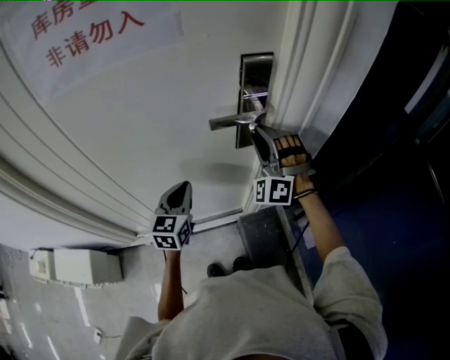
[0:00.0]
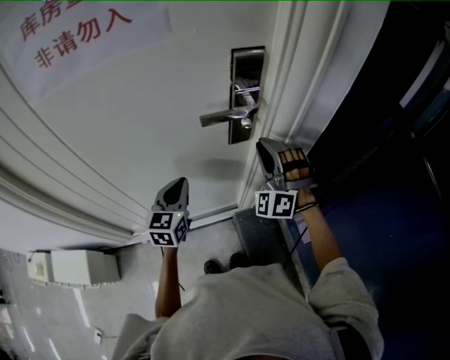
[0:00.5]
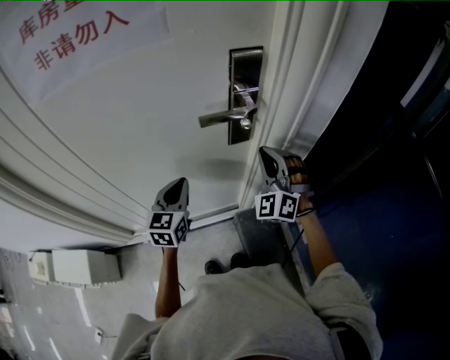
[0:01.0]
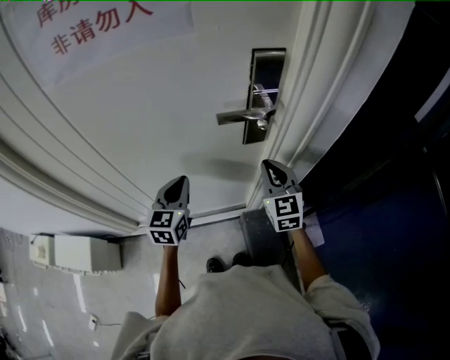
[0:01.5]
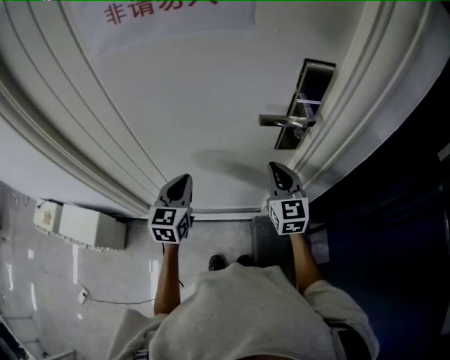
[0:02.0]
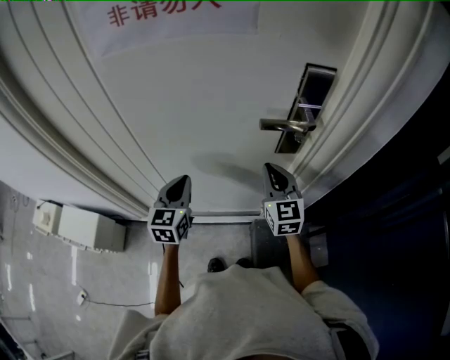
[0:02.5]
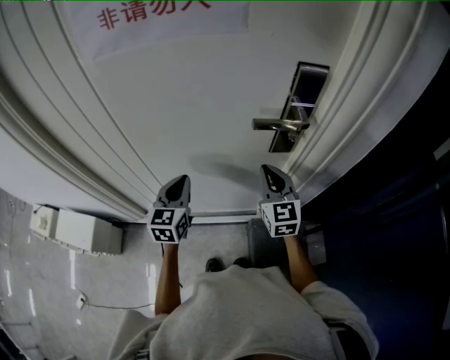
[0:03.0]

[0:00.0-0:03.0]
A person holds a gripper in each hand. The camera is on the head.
0:00.0 to 0:01.5: The right gripper heads downward, covering approximately 5 cm, rolls clockwise, seen from behind, by approximately 70 degrees, and closes.
0:01.5 to 0:03.0: The two grippers go about 5 cm to the left.

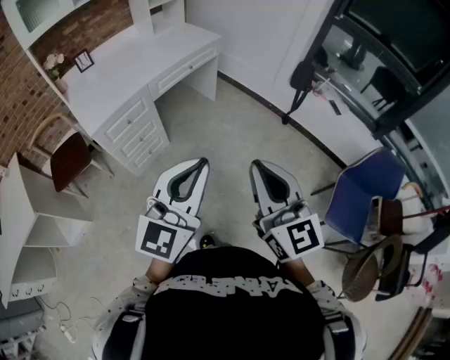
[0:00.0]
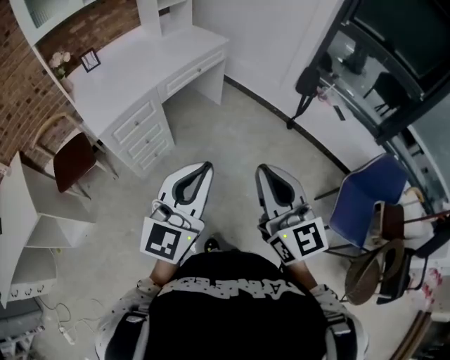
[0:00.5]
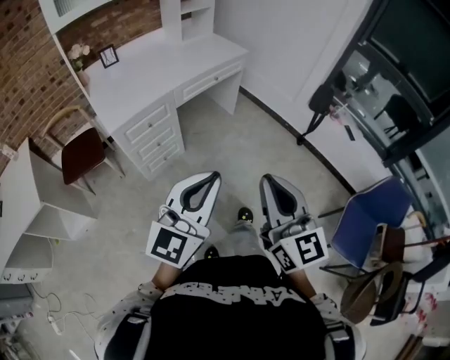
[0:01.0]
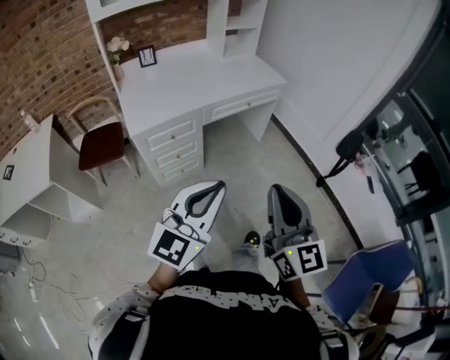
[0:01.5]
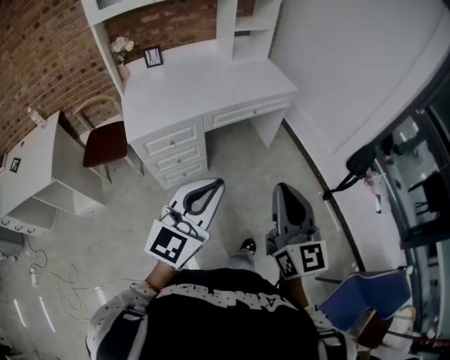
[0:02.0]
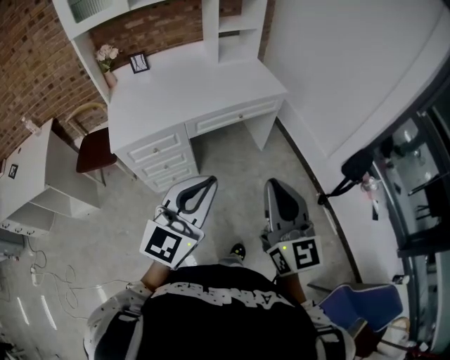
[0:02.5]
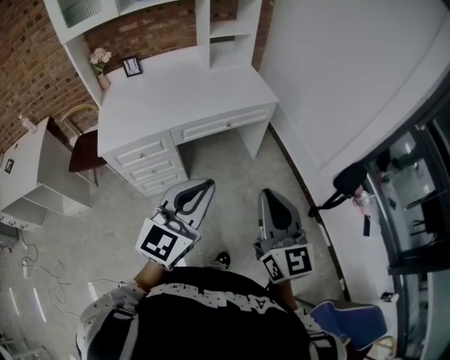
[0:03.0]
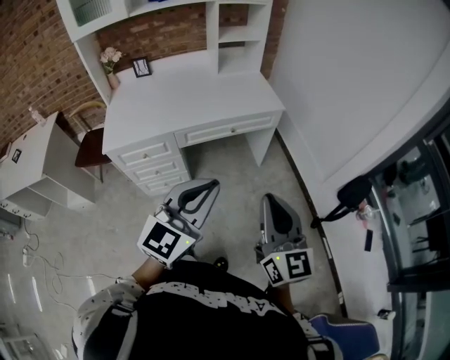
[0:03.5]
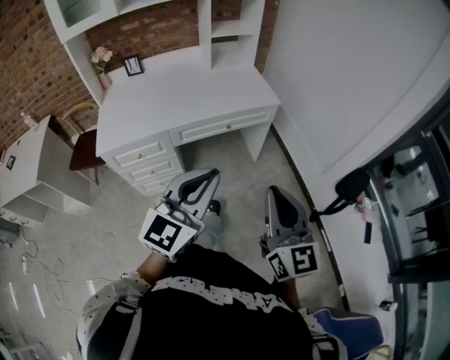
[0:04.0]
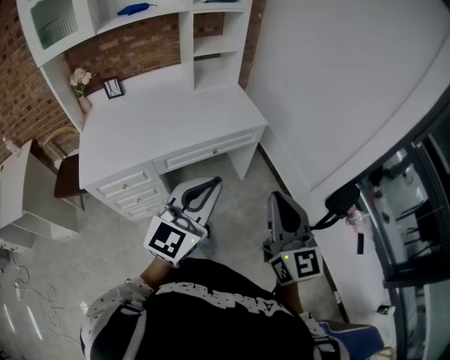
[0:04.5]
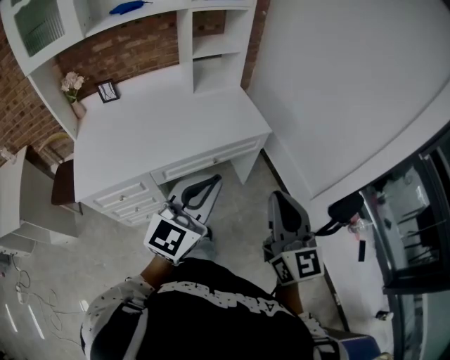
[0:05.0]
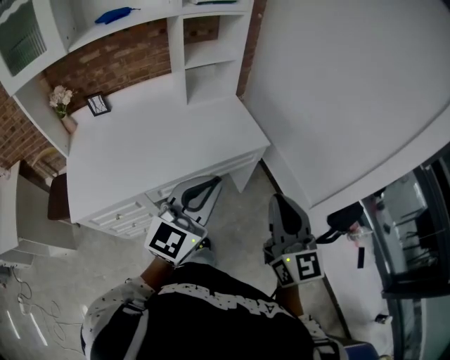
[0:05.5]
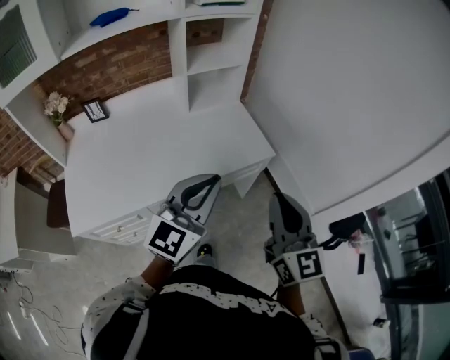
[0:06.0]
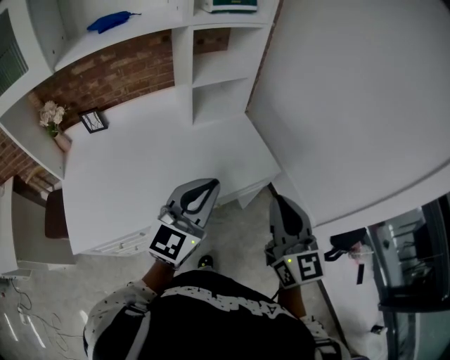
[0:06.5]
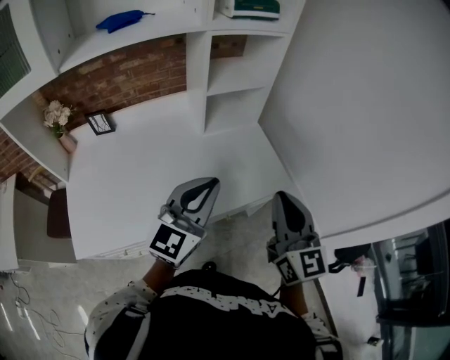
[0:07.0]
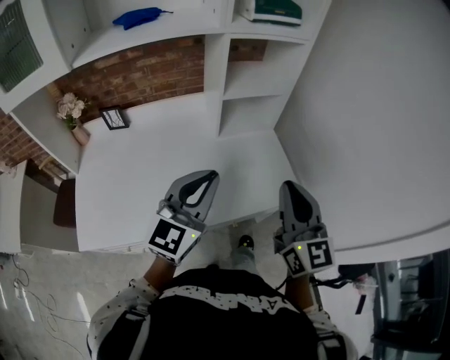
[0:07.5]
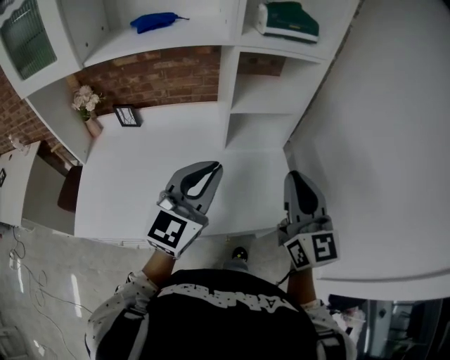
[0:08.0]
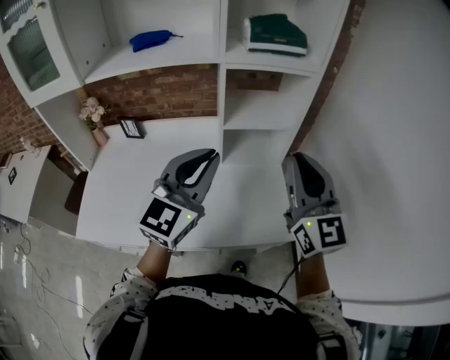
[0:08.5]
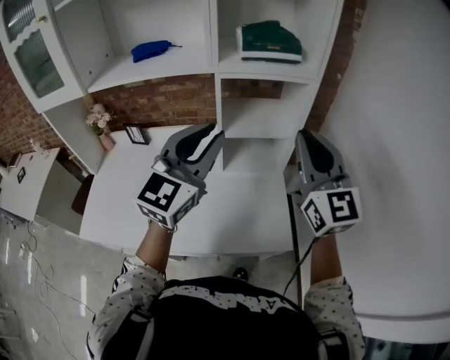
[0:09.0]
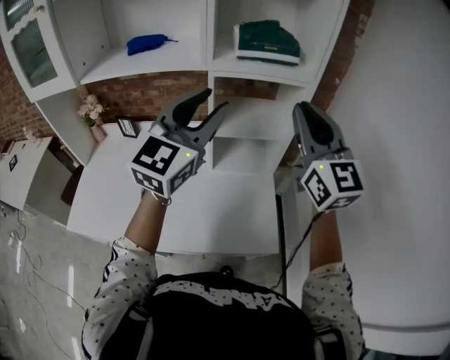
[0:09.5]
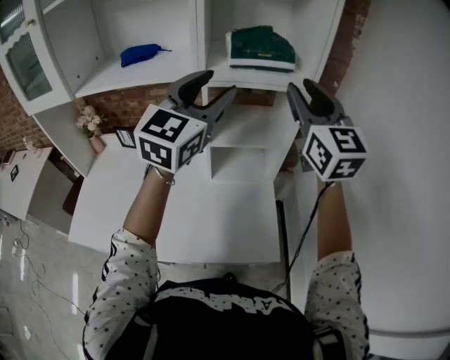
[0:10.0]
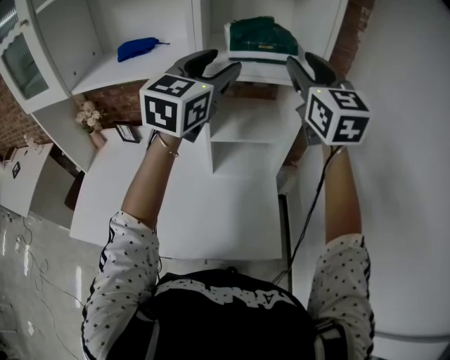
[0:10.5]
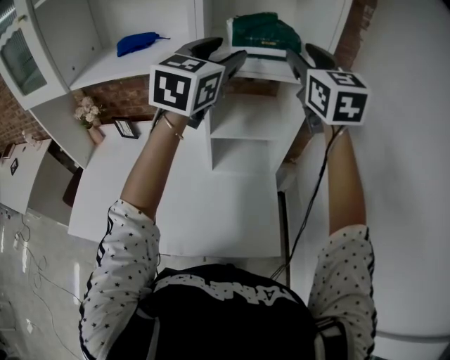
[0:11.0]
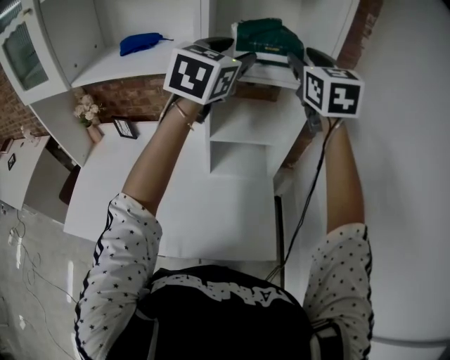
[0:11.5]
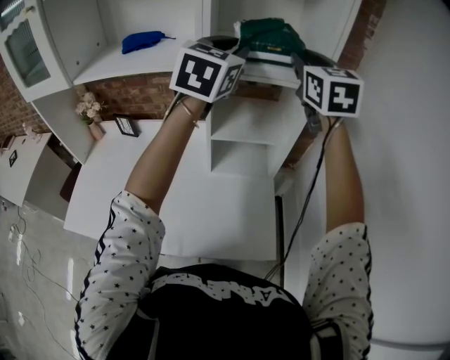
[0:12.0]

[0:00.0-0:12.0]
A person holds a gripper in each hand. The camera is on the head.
0:00.0 to 0:02.0: Both grippers move forward, about 20 cm.
0:02.0 to 0:04.0: The grippers both shift to the right and forward by roughly 20 cm.
0:04.0 to 0:06.0: The two grippers go some 30 cm forward.
0:06.0 to 0:08.0: The right gripper travels forward by some 25 cm, while the left gripper moves forward and to the left, some 20 cm, and turns by roughly 20 degrees.
0:08.0 to 0:10.0: Both grippers move forward and upward, some 30 cm. The left gripper opens its fingers. The right gripper opens.
0:10.0 to 0:12.0: Both grippers travel together forward, about 10 cm. The left gripper closes up.

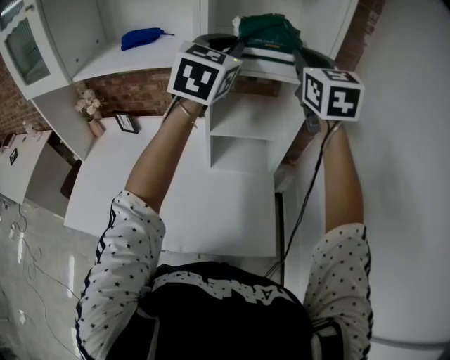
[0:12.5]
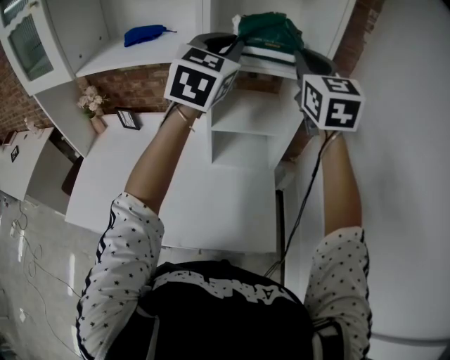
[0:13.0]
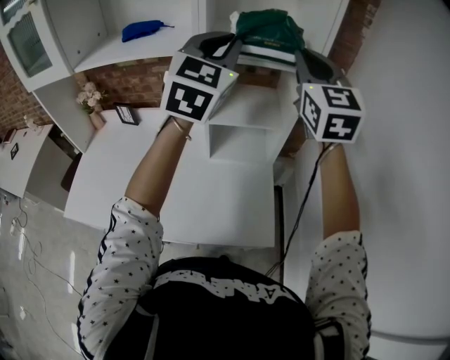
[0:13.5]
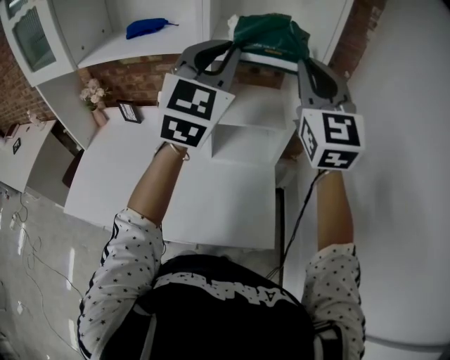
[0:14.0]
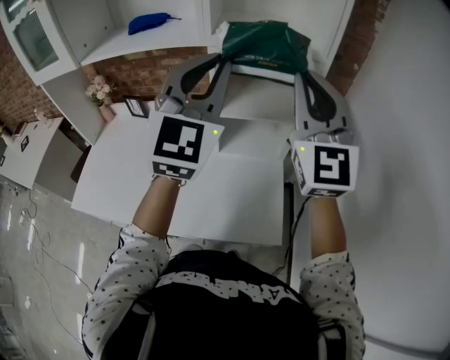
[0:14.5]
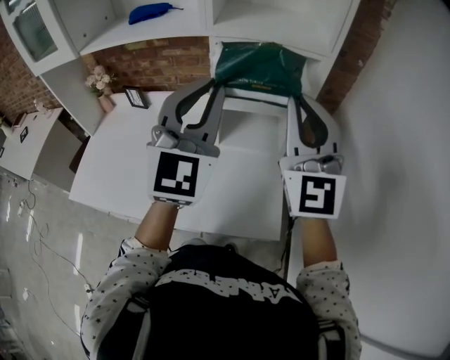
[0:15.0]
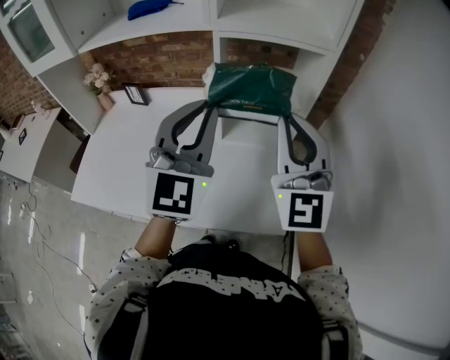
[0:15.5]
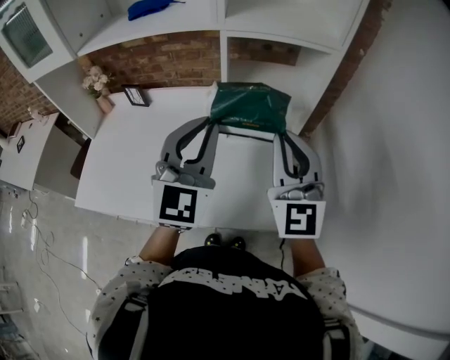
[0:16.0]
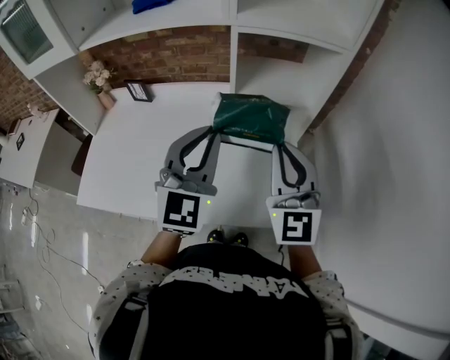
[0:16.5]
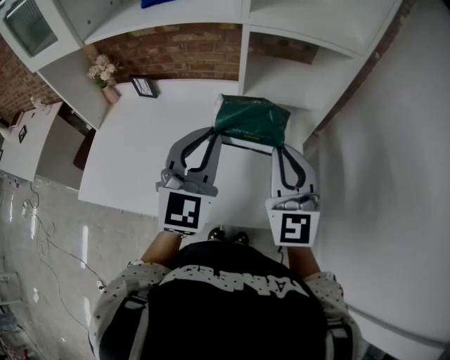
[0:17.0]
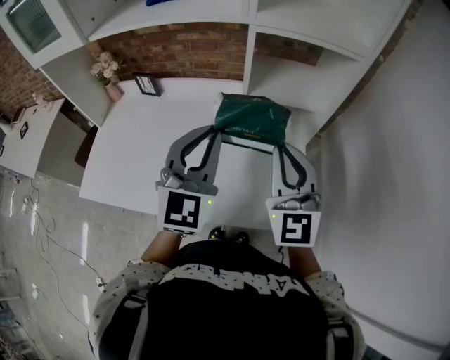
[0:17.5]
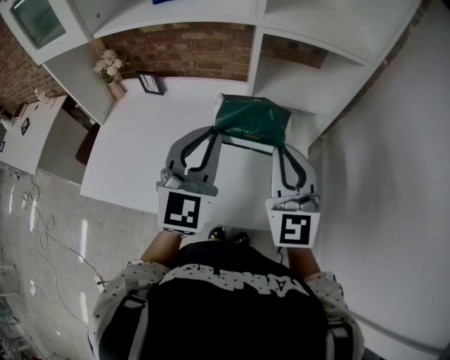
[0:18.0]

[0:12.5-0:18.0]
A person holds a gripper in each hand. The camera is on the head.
0:12.5 to 0:14.5: The grippers both shift backward by roughly 15 cm. The right gripper swivels approximately 20 degrees.
0:14.5 to 0:16.0: The right gripper heads downward and backward, covering roughly 15 cm; the left gripper travels downward by some 15 cm.
0:16.0 to 0:18.0: Both grippers travel together to the left, some 5 cm.

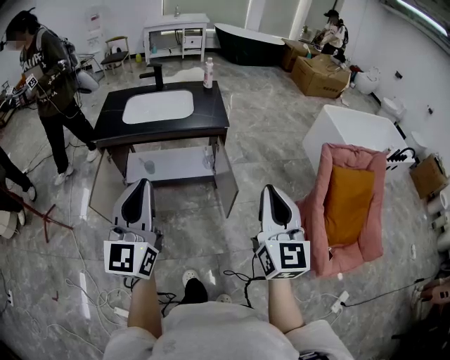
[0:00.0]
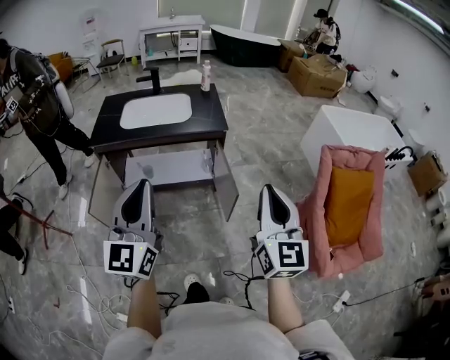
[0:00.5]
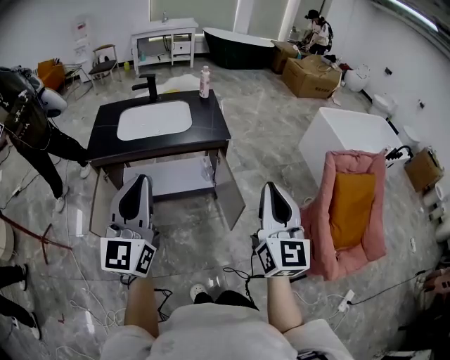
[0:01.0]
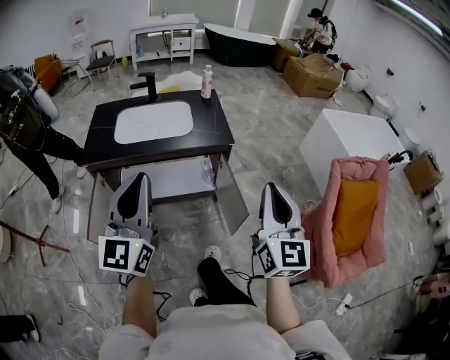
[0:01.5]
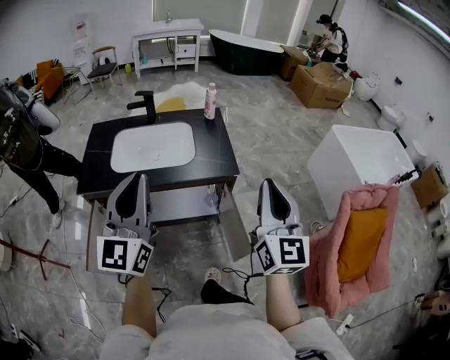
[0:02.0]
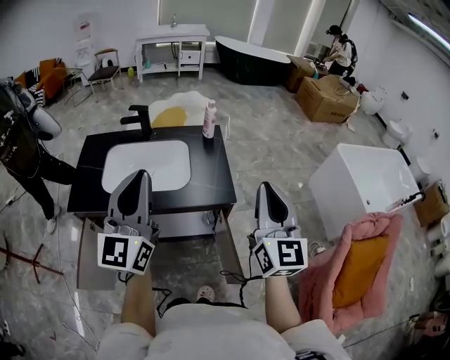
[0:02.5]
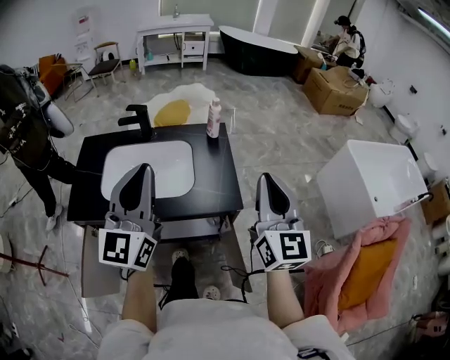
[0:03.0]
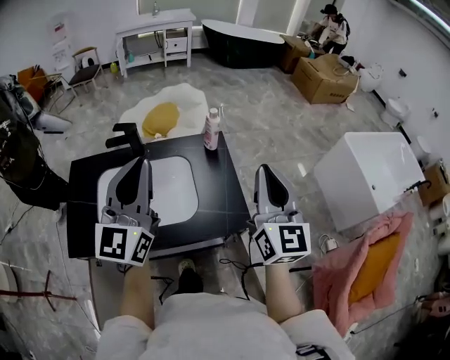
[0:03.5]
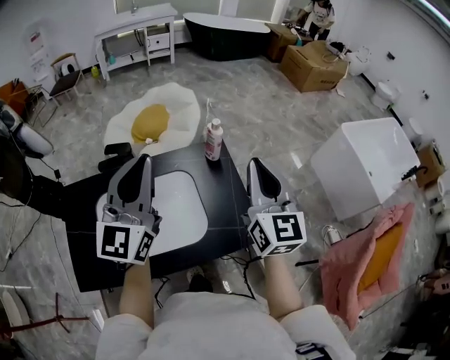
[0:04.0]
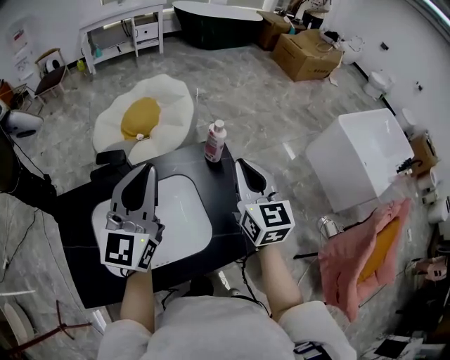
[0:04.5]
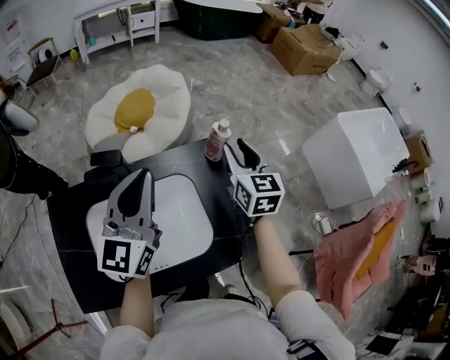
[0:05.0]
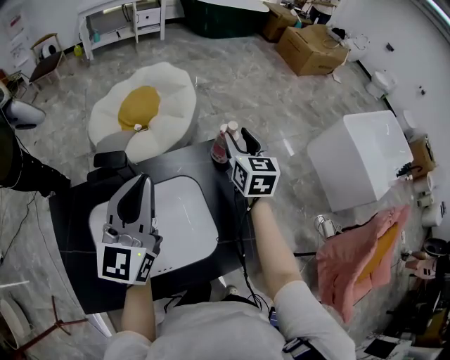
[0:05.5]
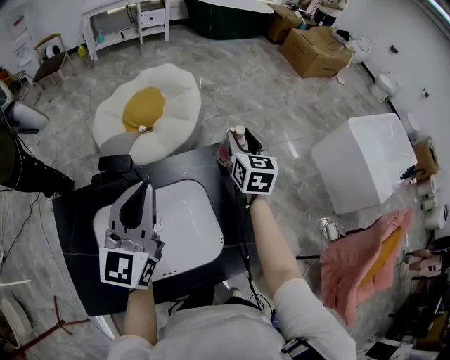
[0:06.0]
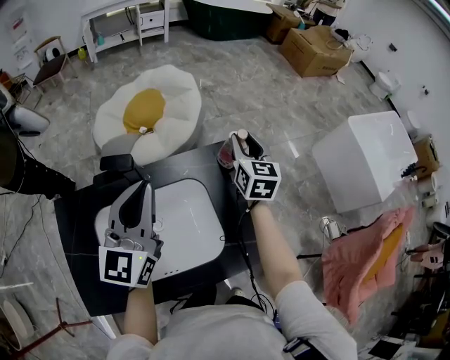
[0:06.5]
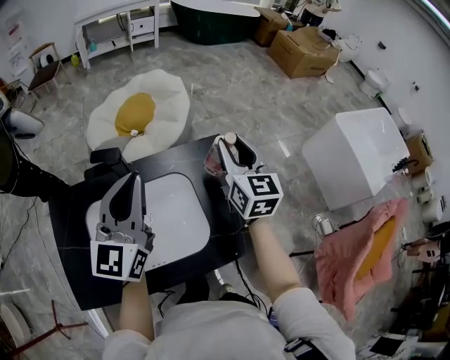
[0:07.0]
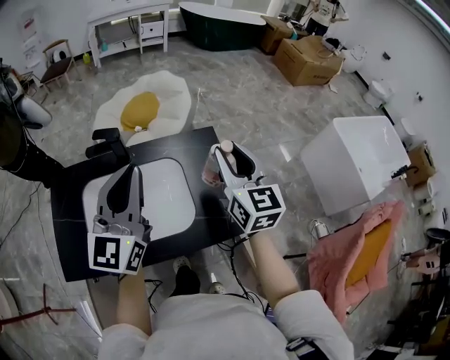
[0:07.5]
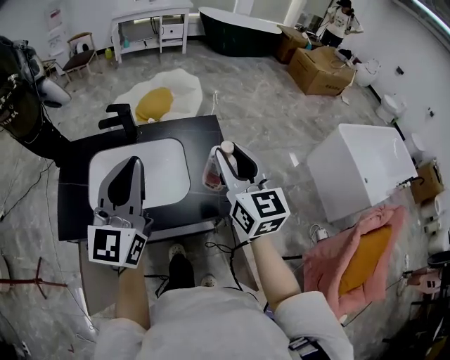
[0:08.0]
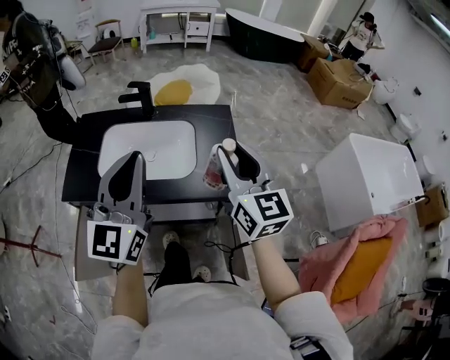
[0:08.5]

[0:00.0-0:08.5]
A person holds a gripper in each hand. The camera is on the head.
0:00.0 to 0:02.0: Both grippers travel together forward, about 30 cm.
0:02.0 to 0:04.0: The pair of grippers is taken forward, roughly 40 cm.
0:04.0 to 0:06.5: The left gripper heads downward, to the left and forward, covering some 15 cm, while the right gripper is displaced forward and downward by about 25 cm, rotates approximately 20 degrees, and opens up.
0:06.5 to 0:08.5: The left gripper shifts some 30 cm backward, and turns by about 20 degrees. The right gripper heads backward and upward, covering approximately 40 cm, and turns by about 30 degrees.
